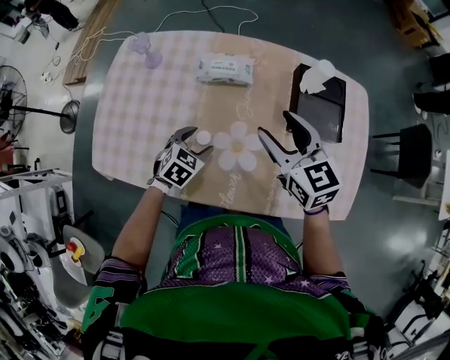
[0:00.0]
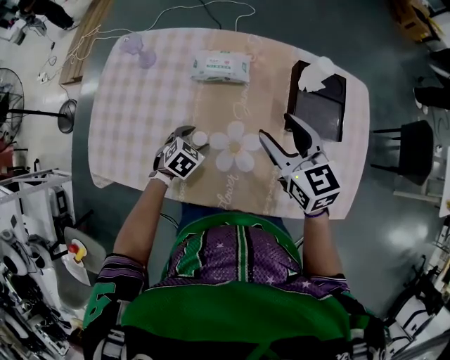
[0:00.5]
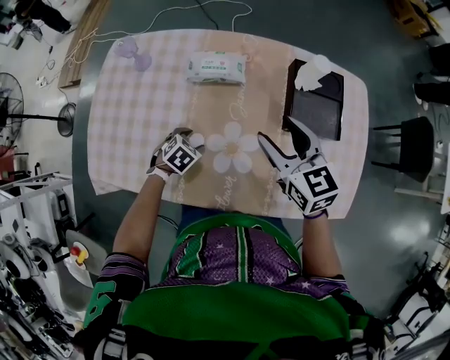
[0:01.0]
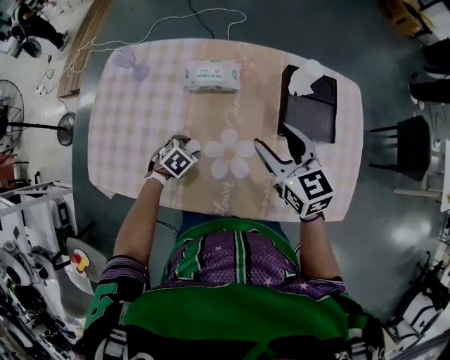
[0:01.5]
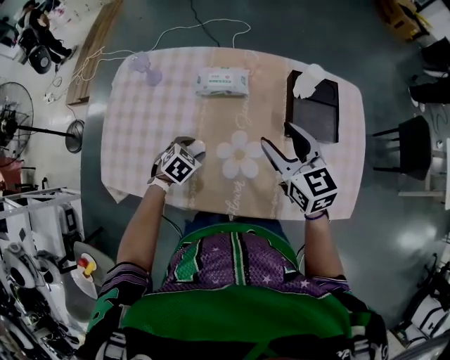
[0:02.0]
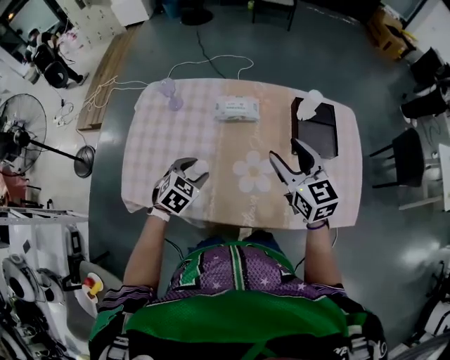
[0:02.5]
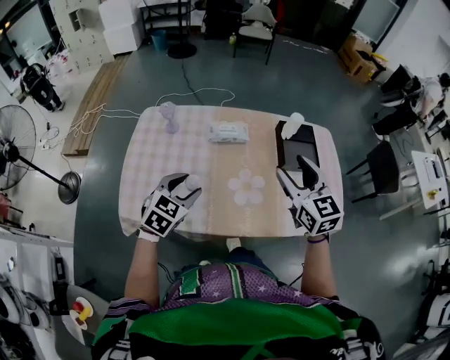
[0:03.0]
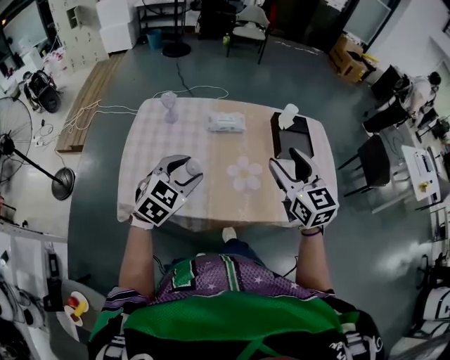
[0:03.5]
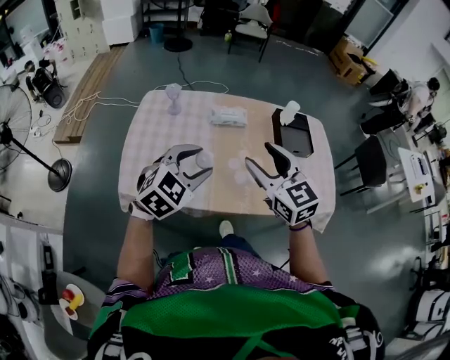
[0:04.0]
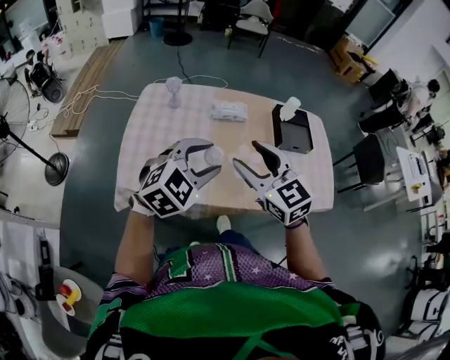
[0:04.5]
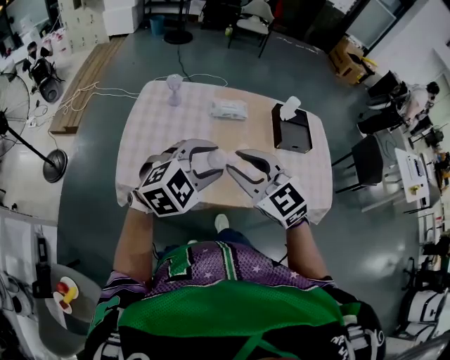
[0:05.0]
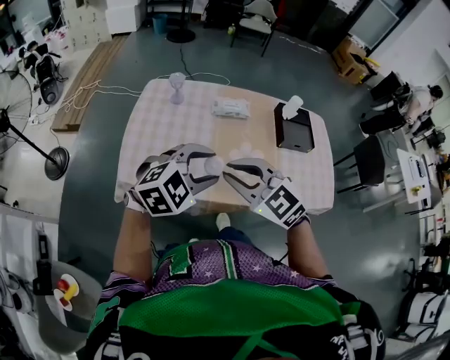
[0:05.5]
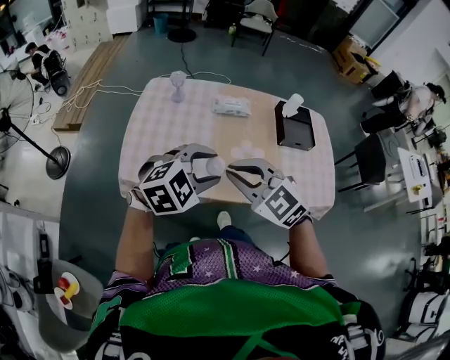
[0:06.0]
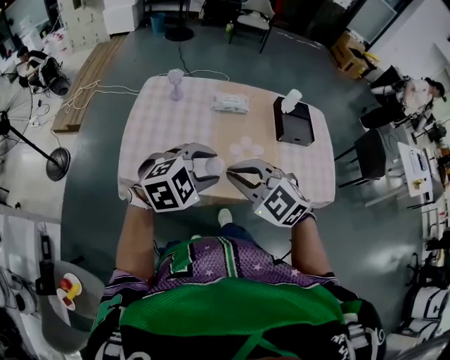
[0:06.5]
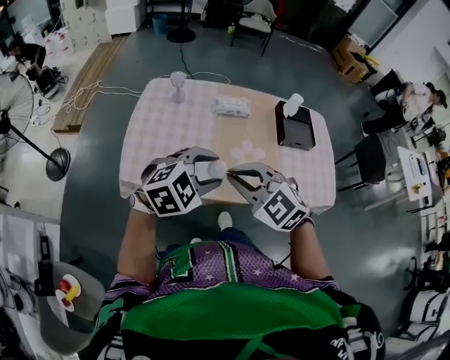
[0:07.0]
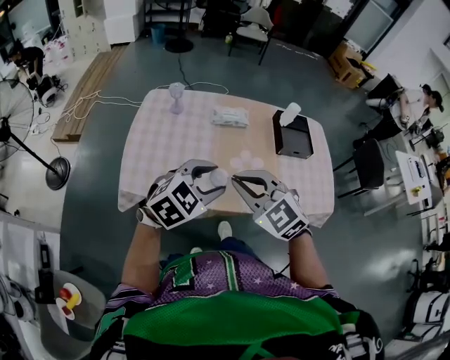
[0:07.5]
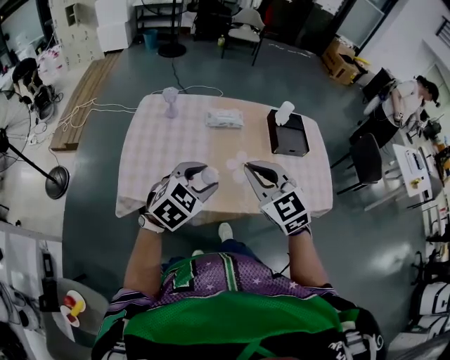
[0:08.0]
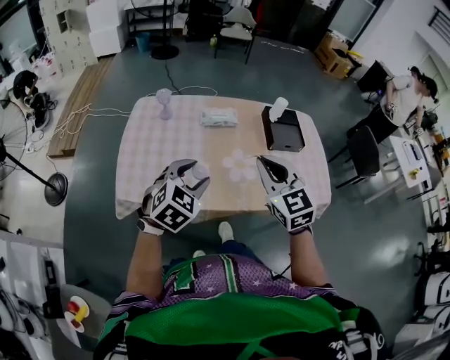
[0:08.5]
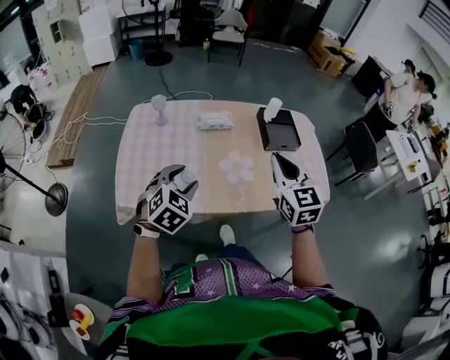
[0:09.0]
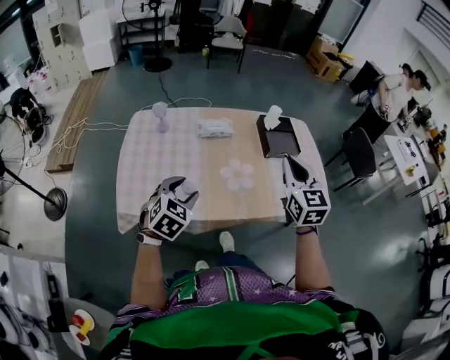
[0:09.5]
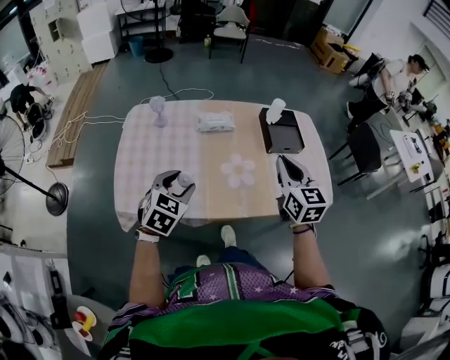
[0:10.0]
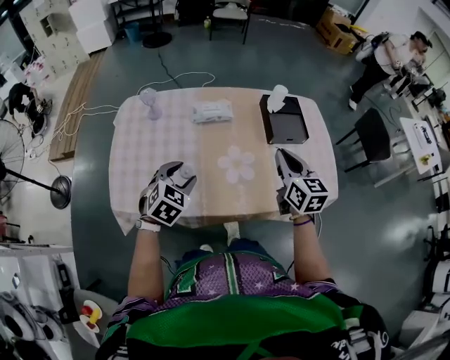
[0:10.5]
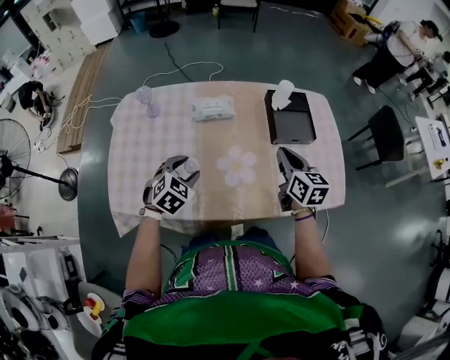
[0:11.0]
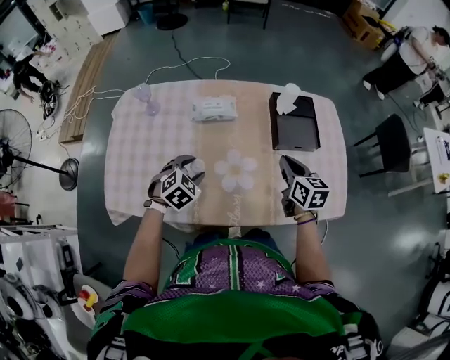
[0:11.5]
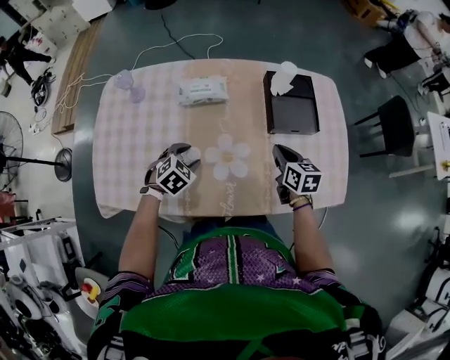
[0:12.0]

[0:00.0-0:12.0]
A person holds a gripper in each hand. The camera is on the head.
0:00.0 to 0:02.0: The left gripper moves approximately 10 cm downward and comes back.
0:02.0 to 0:04.0: The right gripper heads backward, to the left and upward, covering roughly 30 cm; the left gripper moves upward and backward, approximately 40 cm, and points its fingers approximately 40 degrees further upward.
0:04.0 to 0:06.0: The left gripper goes some 5 cm backward, while the right gripper travels backward and to the left by about 10 cm, changes its angle by about 30 degrees, and closes.
0:06.0 to 0:08.0: The right gripper heads to the right, covering roughly 5 cm, and changes its angle by about 20 degrees. Meanwhile the left gripper swivels approximately 20 degrees.
0:08.0 to 0:10.0: The left gripper goes approximately 5 cm downward. The right gripper travels to the right and forward by approximately 15 cm, and turns by approximately 40 degrees.
0:10.0 to 0:12.0: Both grippers move downward, forward and to the right, some 30 cm. The left gripper turns by roughly 30 degrees. The right gripper rotates roughly 30 degrees.

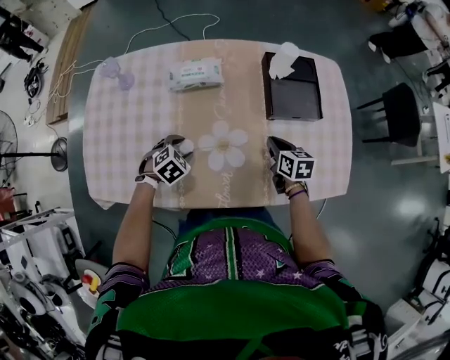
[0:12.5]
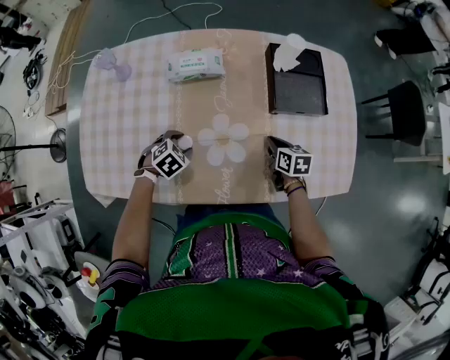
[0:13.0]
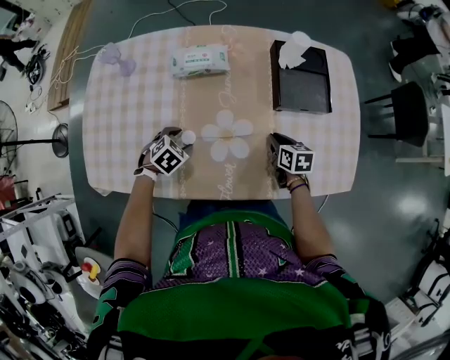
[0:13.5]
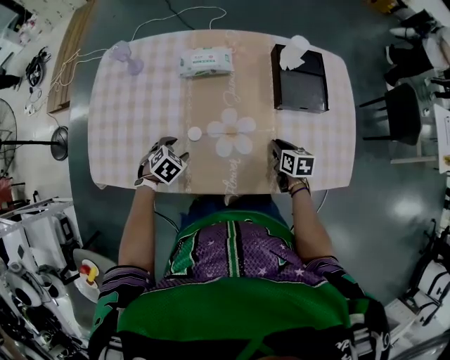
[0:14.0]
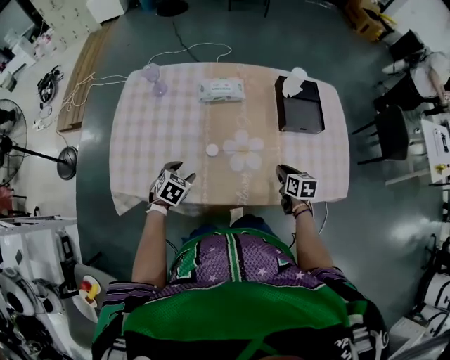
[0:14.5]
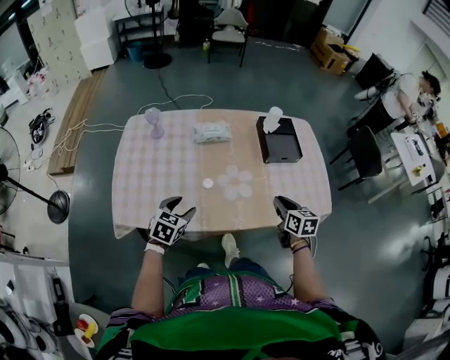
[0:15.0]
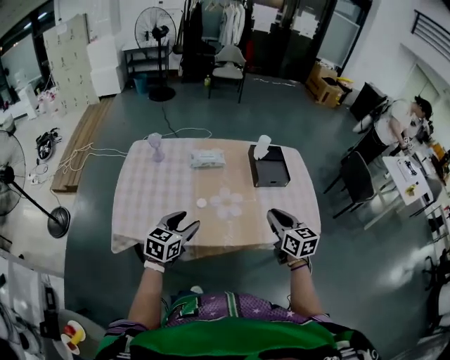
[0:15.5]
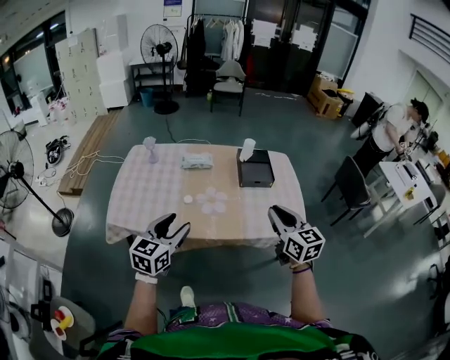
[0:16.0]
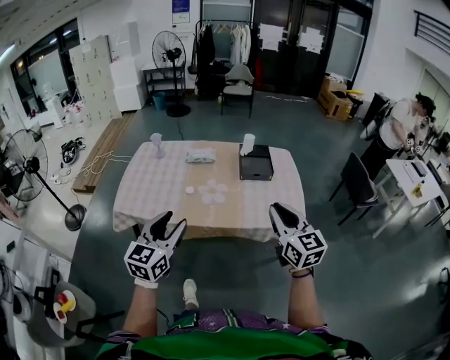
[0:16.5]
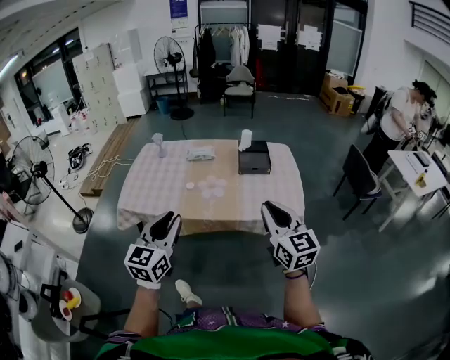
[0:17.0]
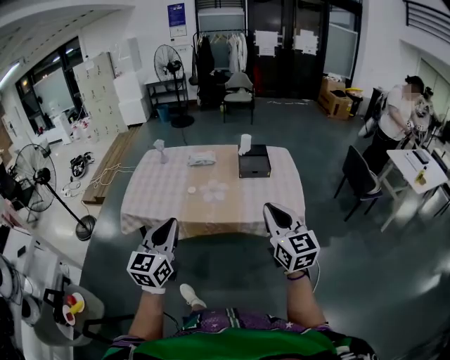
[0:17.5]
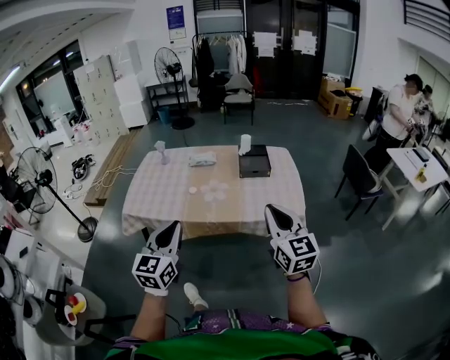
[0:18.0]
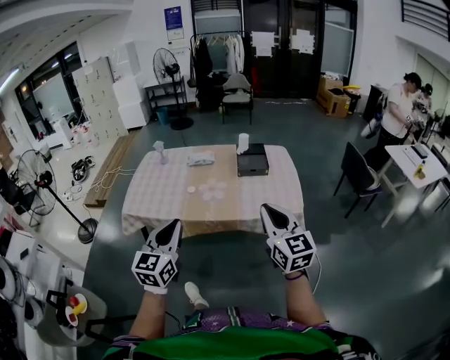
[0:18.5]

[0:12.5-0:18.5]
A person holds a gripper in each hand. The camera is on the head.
0:12.5 to 0:14.5: The left gripper travels backward, to the left and upward by some 15 cm, and swivels roughly 20 degrees, while the right gripper is displaced backward by about 10 cm.
0:14.5 to 0:16.5: The left gripper heads upward, backward and to the right, covering about 60 cm, and tips its fingers upward by approximately 50 degrees. Meanwhile the right gripper heads upward and backward, covering roughly 50 cm, and tilts its fingers approximately 40 degrees upward.
0:16.5 to 0:18.5: Both grippers move backward, roughly 10 cm. The left gripper closes its fingers.

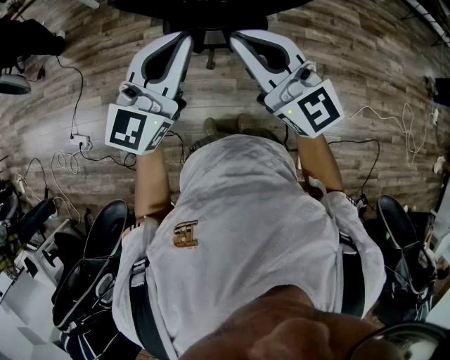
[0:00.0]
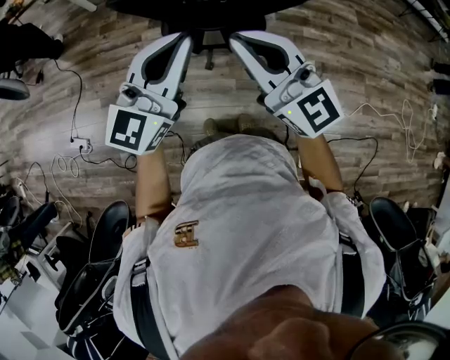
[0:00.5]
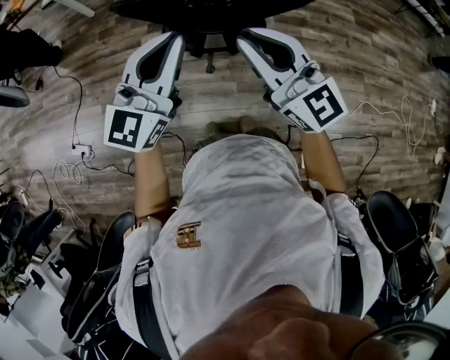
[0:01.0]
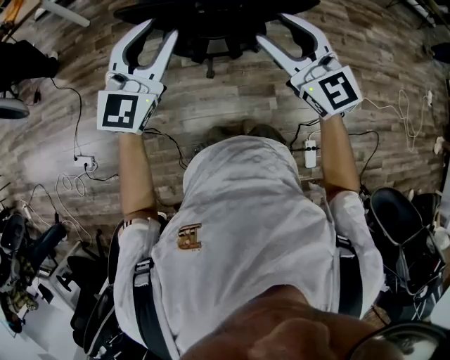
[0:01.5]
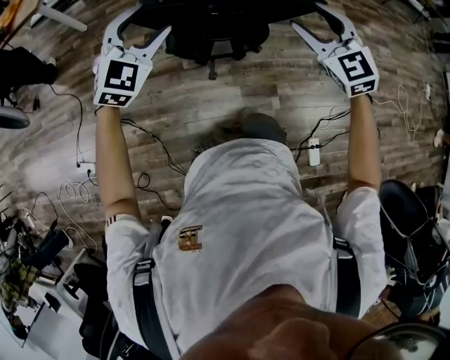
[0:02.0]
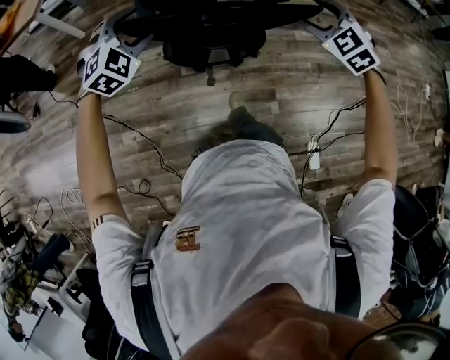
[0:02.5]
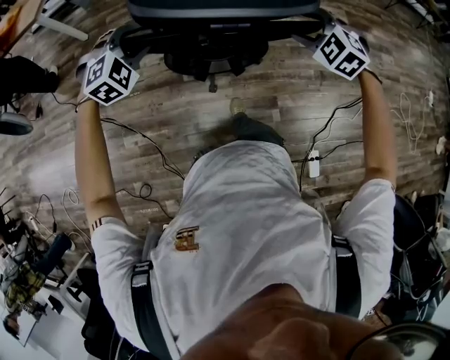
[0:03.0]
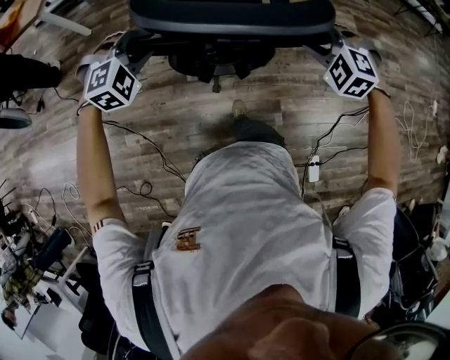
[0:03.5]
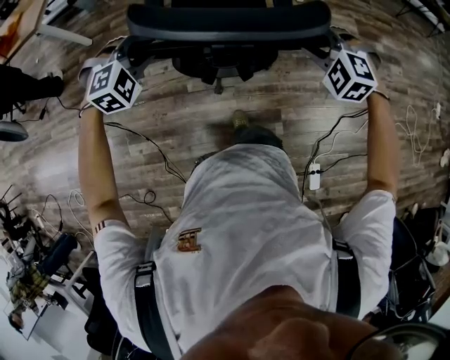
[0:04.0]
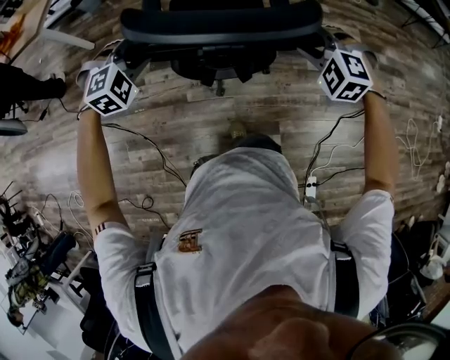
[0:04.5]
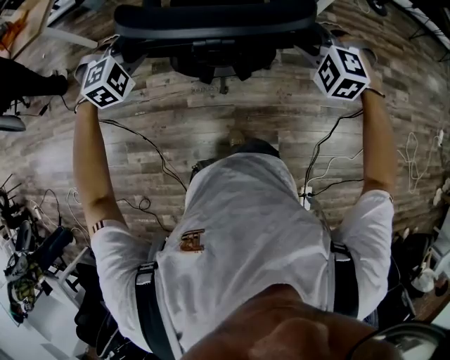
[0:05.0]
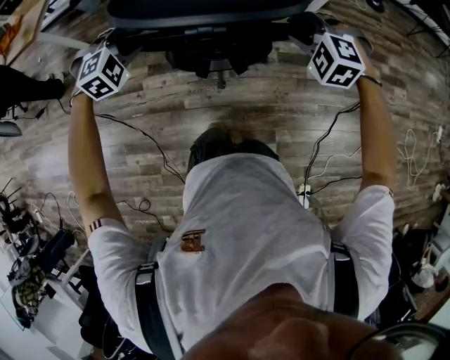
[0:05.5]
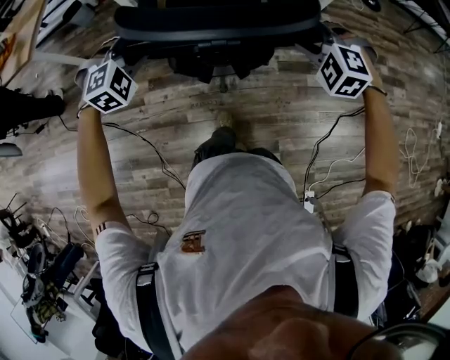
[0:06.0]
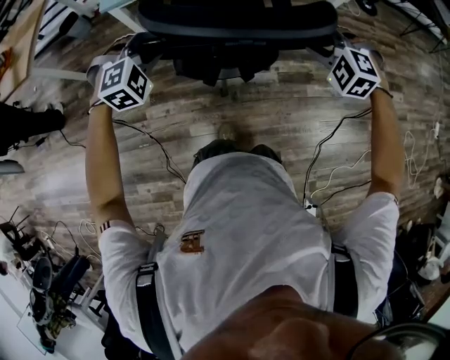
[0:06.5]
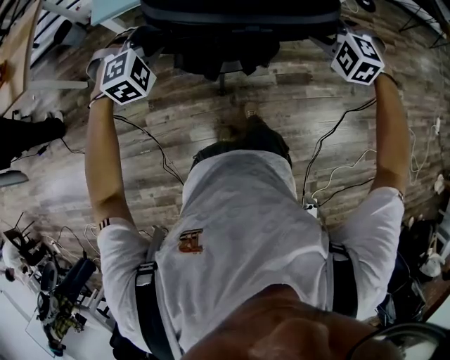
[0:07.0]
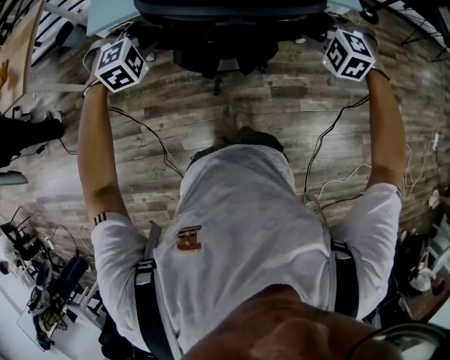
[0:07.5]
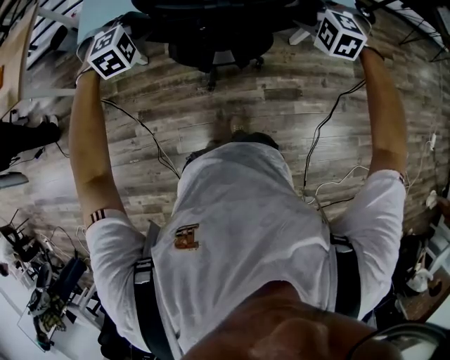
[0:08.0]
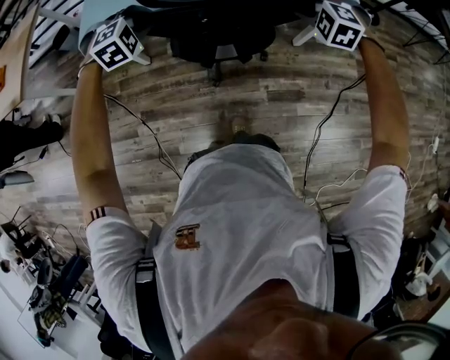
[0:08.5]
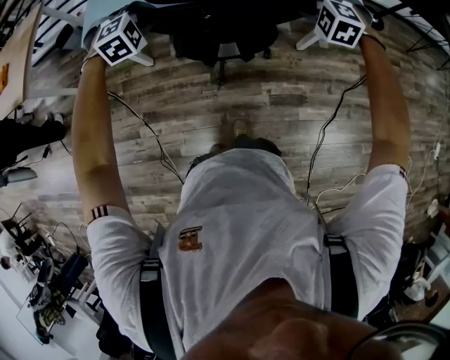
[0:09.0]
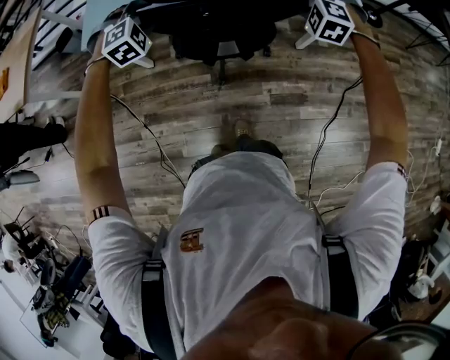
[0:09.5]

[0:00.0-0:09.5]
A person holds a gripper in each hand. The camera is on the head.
0:00.0 to 0:02.0: The left gripper moves forward, to the left and downward, roughly 20 cm, swivels some 40 degrees, and opens. Meanwhile the right gripper heads forward, downward and to the right, covering approximately 15 cm, turns by about 40 degrees, and opens up.
0:02.0 to 0:04.0: The left gripper moves forward and downward, some 20 cm, tilts its fingers about 30 degrees downward, and closes, while the right gripper shifts some 20 cm forward, downward and to the right, tilts its fingers approximately 30 degrees downward, and closes its fingers.
0:04.0 to 0:05.5: The two grippers go some 20 cm forward.
0:05.5 to 0:07.5: Both grippers move forward, roughly 30 cm.
0:07.5 to 0:09.5: The two grippers go about 15 cm forward. The left gripper opens its fingers.
